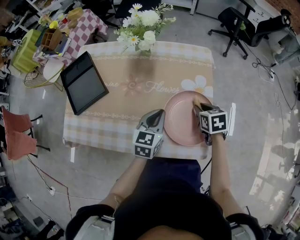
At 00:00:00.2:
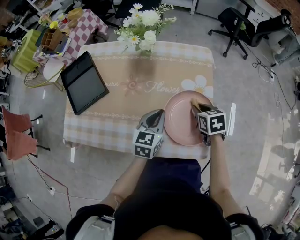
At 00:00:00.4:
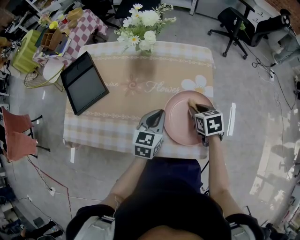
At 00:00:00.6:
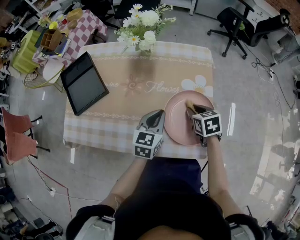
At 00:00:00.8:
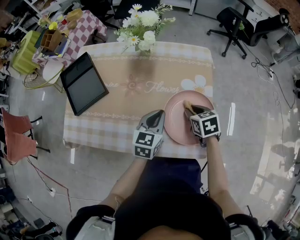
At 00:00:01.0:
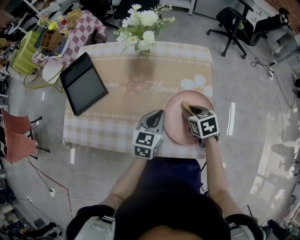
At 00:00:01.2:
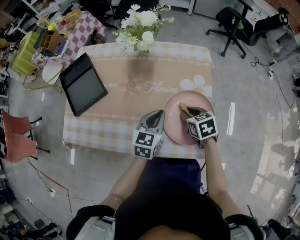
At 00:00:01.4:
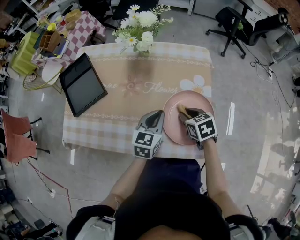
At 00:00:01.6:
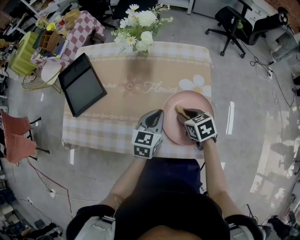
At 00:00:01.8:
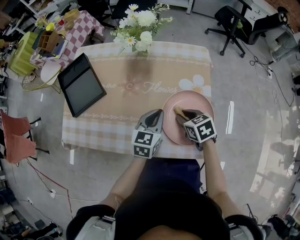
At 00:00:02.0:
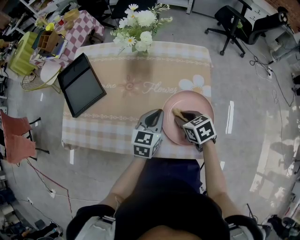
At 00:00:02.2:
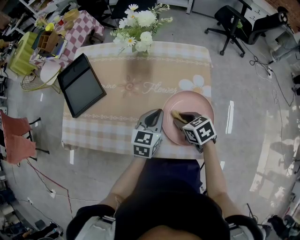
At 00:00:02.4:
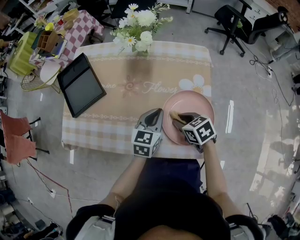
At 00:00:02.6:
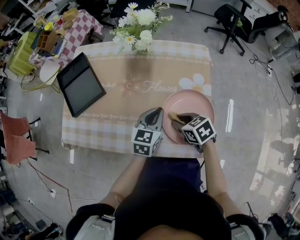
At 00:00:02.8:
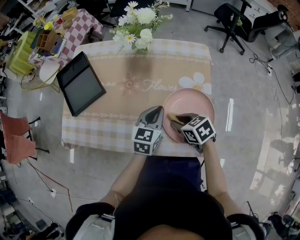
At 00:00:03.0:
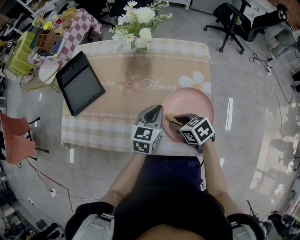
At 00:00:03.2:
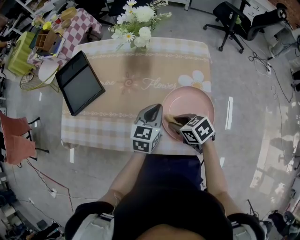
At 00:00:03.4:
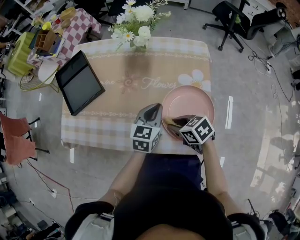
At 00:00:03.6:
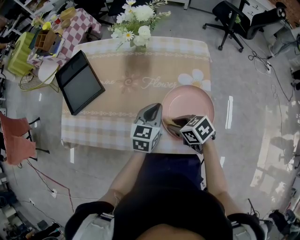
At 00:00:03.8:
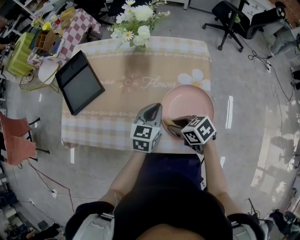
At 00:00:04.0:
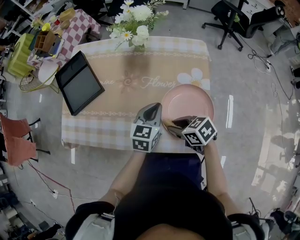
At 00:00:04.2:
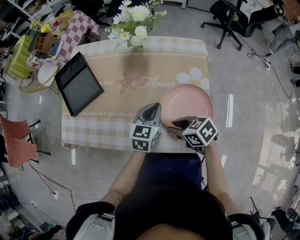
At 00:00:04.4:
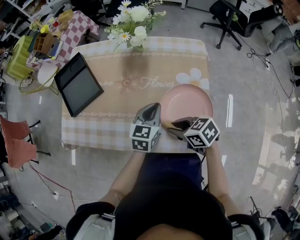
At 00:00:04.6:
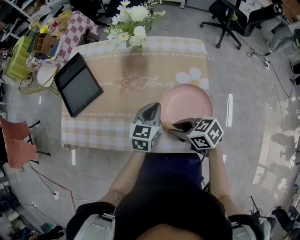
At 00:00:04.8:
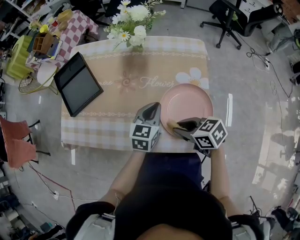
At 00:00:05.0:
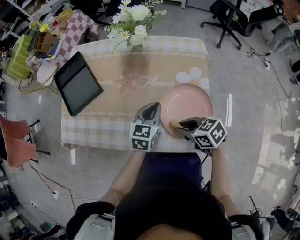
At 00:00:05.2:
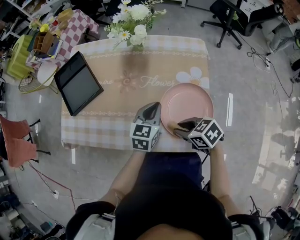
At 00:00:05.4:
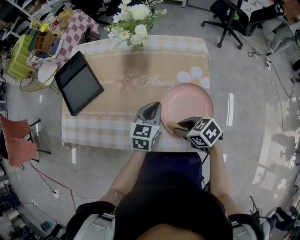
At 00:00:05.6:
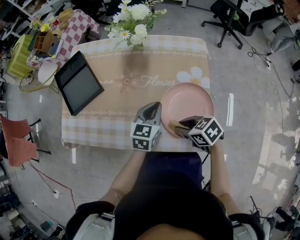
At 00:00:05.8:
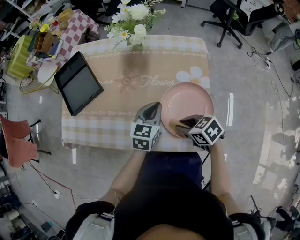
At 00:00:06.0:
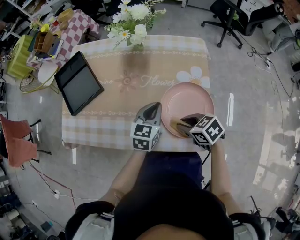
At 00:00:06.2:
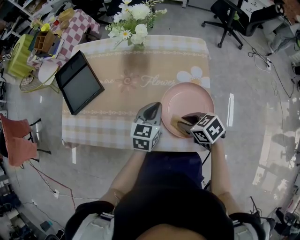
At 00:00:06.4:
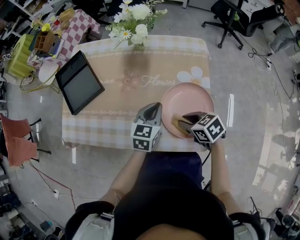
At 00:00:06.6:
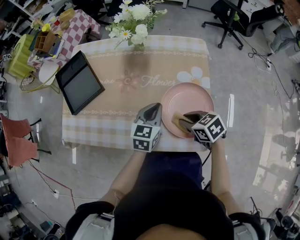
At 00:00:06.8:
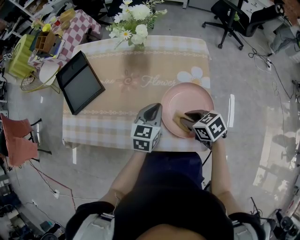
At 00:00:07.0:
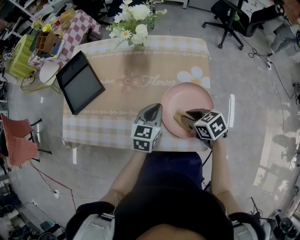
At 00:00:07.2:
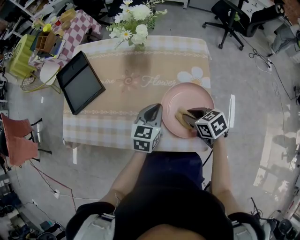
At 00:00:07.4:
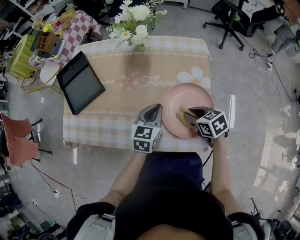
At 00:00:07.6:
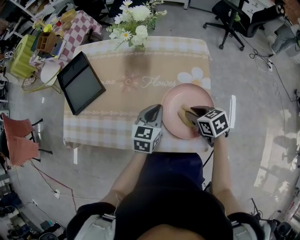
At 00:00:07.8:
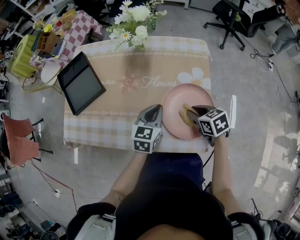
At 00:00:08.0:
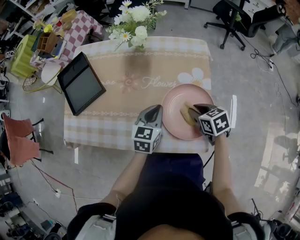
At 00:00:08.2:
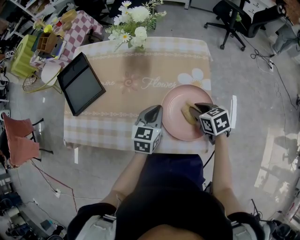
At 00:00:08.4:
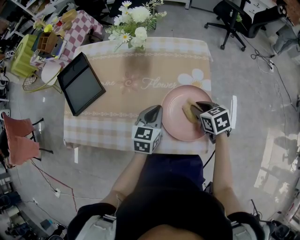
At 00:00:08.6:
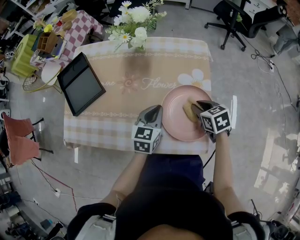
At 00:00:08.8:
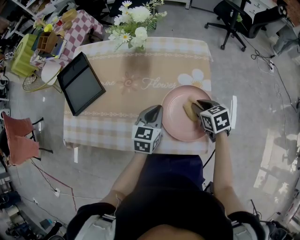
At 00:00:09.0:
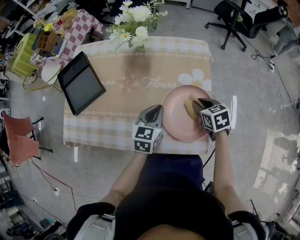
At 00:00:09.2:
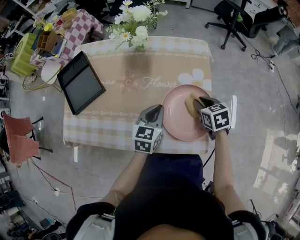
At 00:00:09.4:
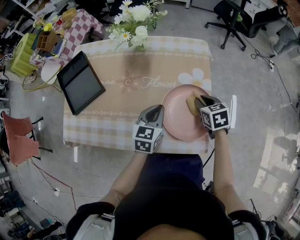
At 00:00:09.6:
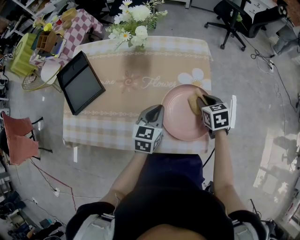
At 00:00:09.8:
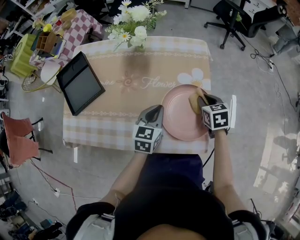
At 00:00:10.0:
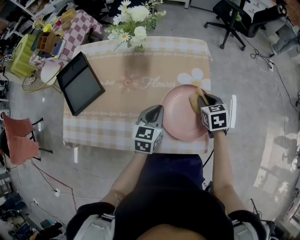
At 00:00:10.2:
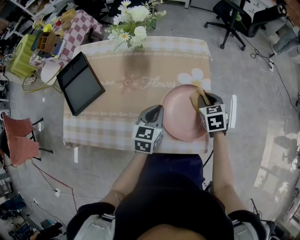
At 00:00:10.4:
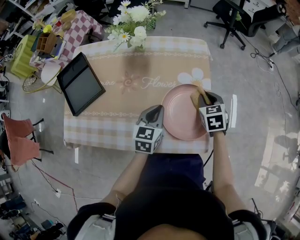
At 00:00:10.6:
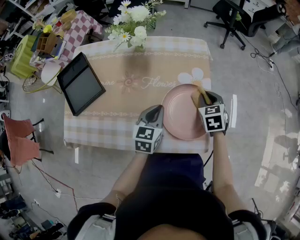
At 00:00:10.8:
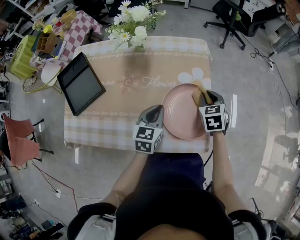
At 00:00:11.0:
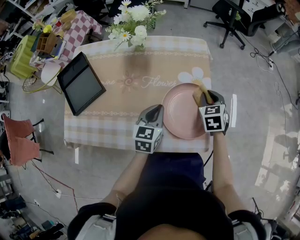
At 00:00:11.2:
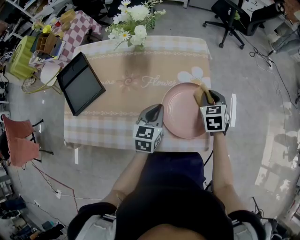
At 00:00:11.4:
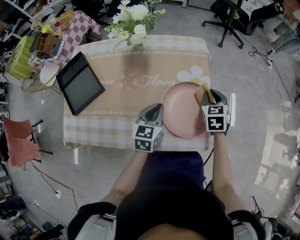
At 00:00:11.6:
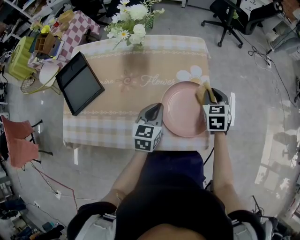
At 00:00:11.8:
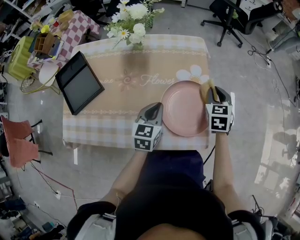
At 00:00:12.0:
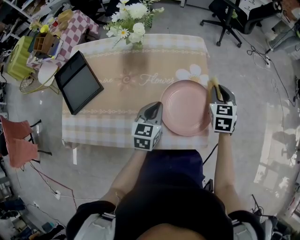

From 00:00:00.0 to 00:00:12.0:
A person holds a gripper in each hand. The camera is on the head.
From 00:00:00.0 to 00:00:01.6: The right gripper heads to the left, covering roughly 5 cm.
From 00:00:01.6 to 00:00:03.0: The right gripper is displaced to the left by roughly 5 cm.
From 00:00:03.0 to 00:00:04.4: The right gripper shifts by approximately 5 cm.
From 00:00:04.4 to 00:00:06.0: There are only small adjustments of the grippers.
From 00:00:06.0 to 00:00:07.6: The right gripper travels to the right by about 5 cm.
From 00:00:07.6 to 00:00:09.0: The right gripper changes place by approximately 5 cm.
From 00:00:09.0 to 00:00:10.4: There are only small adjustments of the grippers.
From 00:00:10.4 to 00:00:12.0: The right gripper is displaced upward by approximately 5 cm.

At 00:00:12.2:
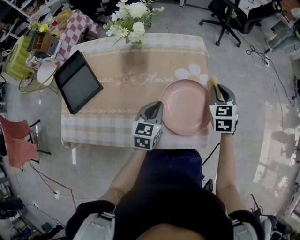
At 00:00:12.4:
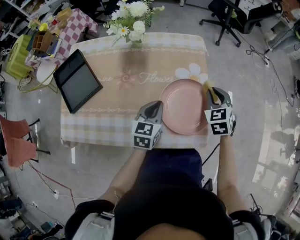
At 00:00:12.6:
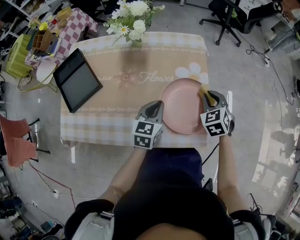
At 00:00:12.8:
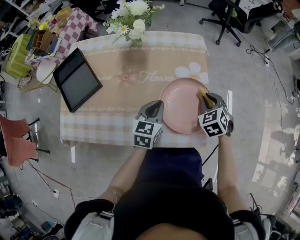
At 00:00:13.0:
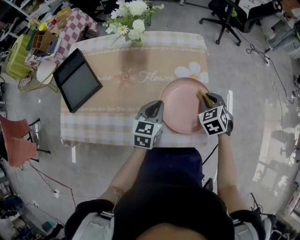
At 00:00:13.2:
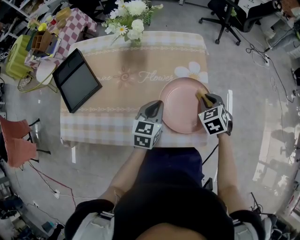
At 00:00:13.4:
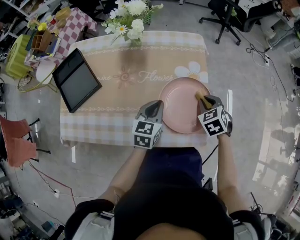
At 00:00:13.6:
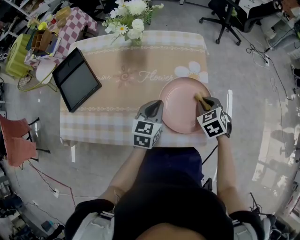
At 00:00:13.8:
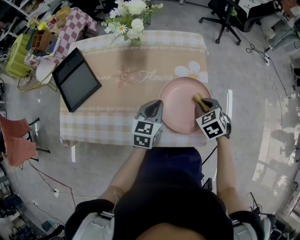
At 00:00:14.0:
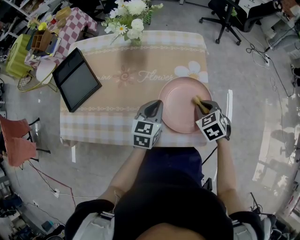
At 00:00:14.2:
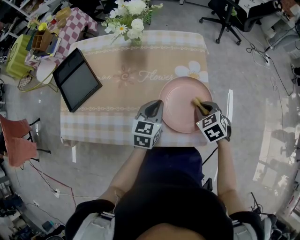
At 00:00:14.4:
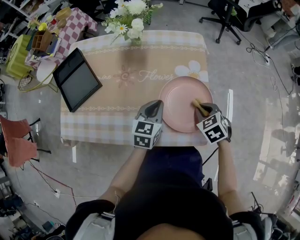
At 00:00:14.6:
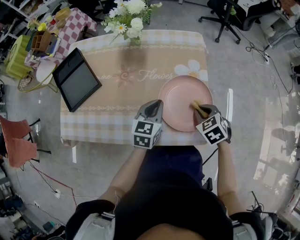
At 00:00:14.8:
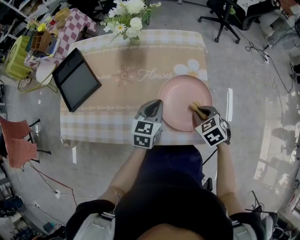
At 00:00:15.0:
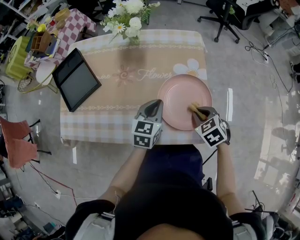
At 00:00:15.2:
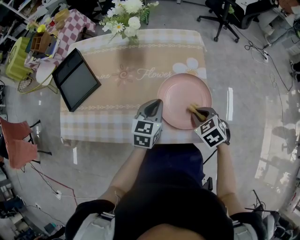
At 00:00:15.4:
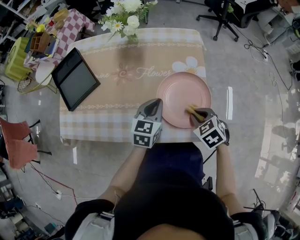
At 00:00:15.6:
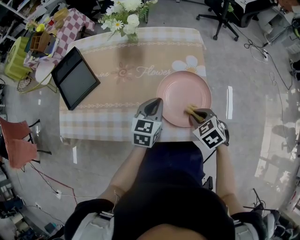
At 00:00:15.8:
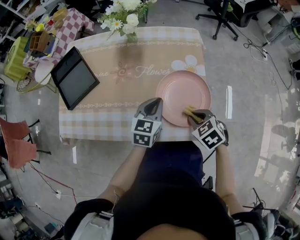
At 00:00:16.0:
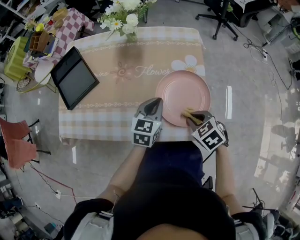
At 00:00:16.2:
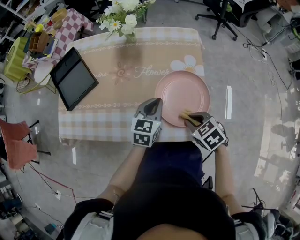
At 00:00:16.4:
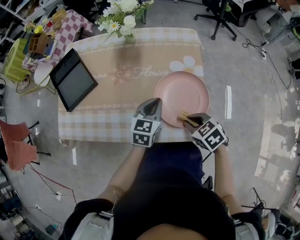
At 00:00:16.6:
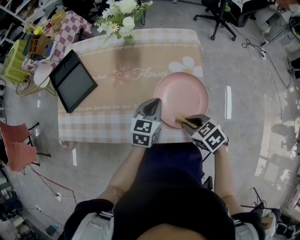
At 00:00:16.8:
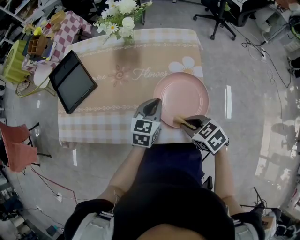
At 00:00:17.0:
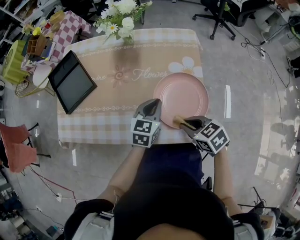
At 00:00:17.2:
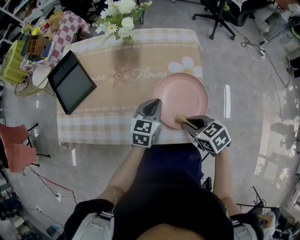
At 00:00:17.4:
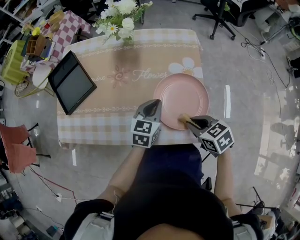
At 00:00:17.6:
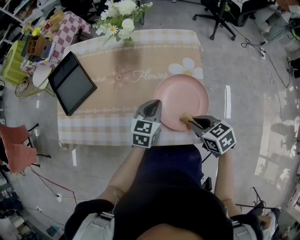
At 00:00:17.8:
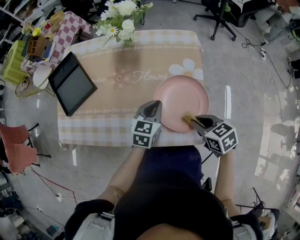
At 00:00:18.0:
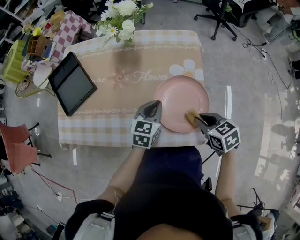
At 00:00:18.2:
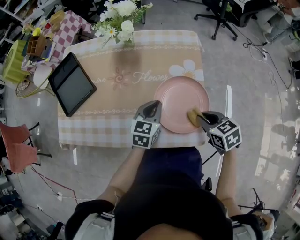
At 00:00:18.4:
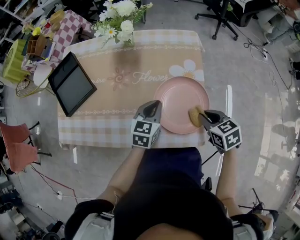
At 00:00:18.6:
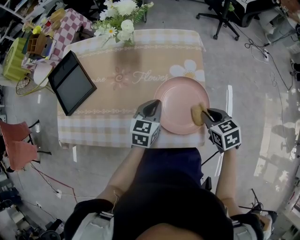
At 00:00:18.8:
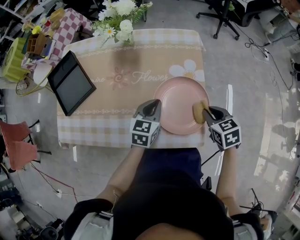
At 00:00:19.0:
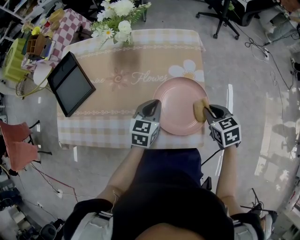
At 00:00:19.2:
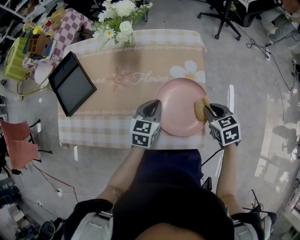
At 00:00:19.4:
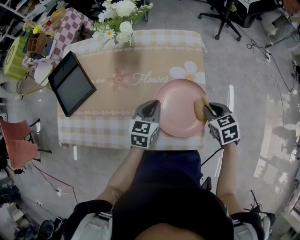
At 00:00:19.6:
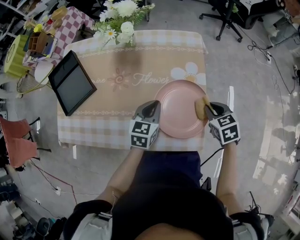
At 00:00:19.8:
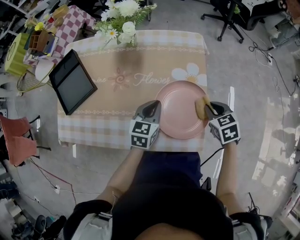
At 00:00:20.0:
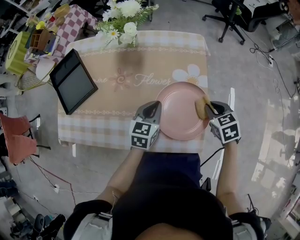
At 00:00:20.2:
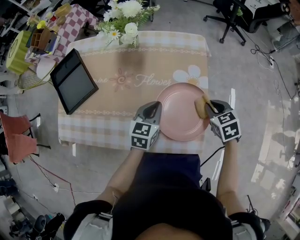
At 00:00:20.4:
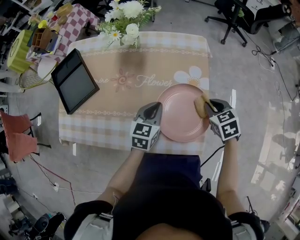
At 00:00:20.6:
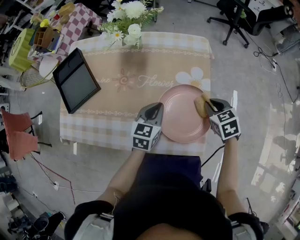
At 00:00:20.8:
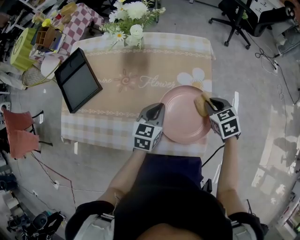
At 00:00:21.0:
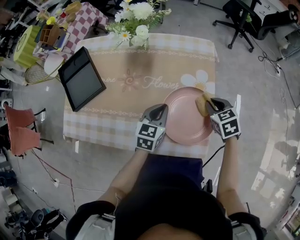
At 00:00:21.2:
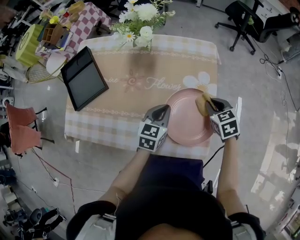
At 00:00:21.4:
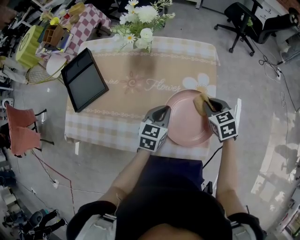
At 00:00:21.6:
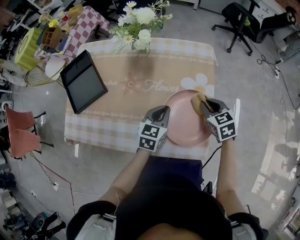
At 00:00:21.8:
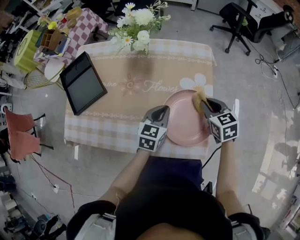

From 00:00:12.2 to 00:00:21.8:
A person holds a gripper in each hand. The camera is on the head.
From 00:00:12.2 to 00:00:13.8: The right gripper is displaced downward and backward by roughly 10 cm, and turns by approximately 30 degrees.
From 00:00:13.8 to 00:00:15.4: The right gripper travels backward by roughly 5 cm.
From 00:00:15.4 to 00:00:17.0: The right gripper shifts by approximately 5 cm, and changes its angle by roughly 20 degrees.
From 00:00:17.0 to 00:00:18.6: The right gripper is displaced to the right by approximately 10 cm.
From 00:00:18.6 to 00:00:20.2: The right gripper heads forward, covering roughly 5 cm.
From 00:00:20.2 to 00:00:21.8: The right gripper moves about 5 cm.

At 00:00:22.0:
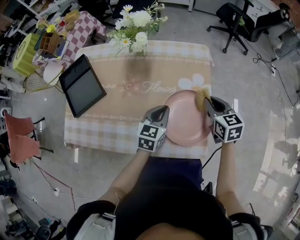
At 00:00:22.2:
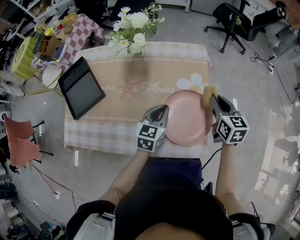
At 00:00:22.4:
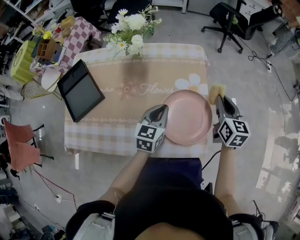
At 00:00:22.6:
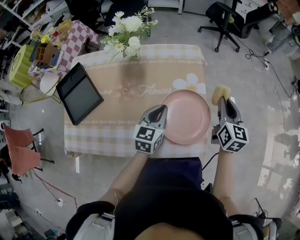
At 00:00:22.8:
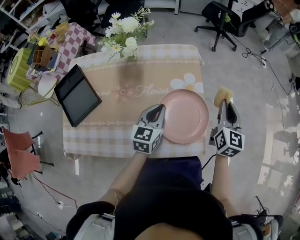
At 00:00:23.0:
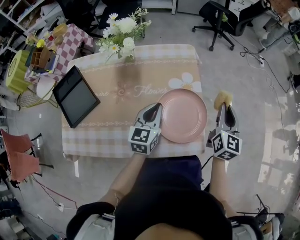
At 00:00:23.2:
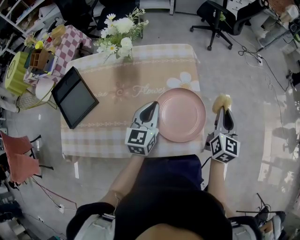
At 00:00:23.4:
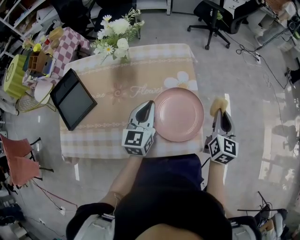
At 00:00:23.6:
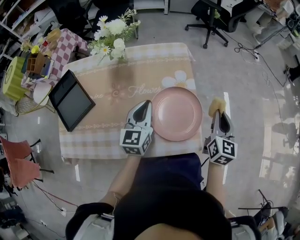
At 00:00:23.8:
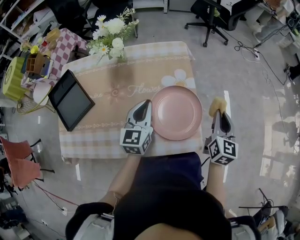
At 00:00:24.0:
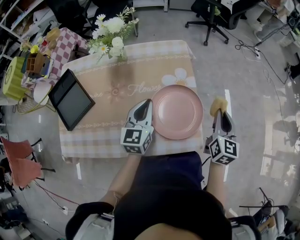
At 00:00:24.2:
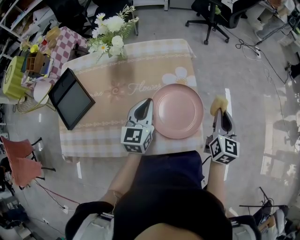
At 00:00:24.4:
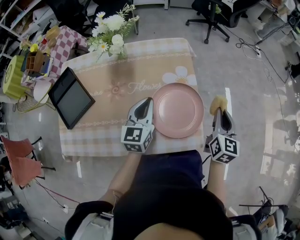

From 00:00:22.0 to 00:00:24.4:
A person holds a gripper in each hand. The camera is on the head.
From 00:00:22.0 to 00:00:23.2: The left gripper moves upward, approximately 5 cm; the right gripper heads to the right, upward and backward, covering about 15 cm, and swivels approximately 40 degrees.
From 00:00:23.2 to 00:00:24.4: There are only small adjustments of the grippers.
